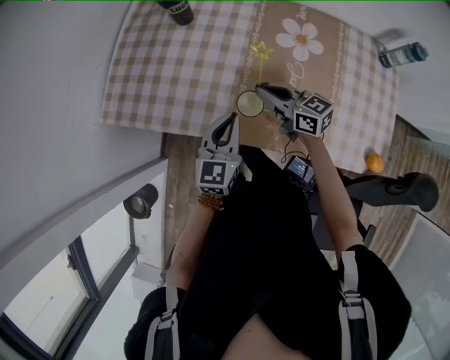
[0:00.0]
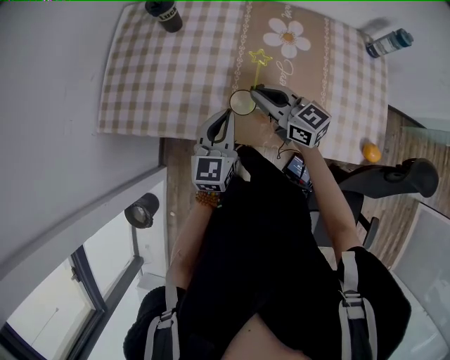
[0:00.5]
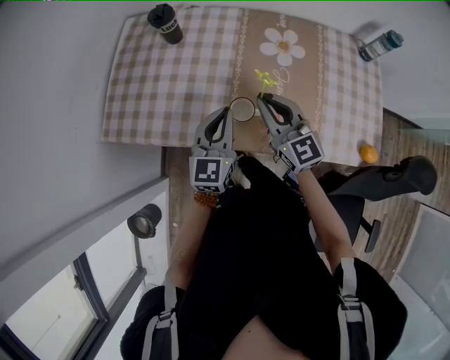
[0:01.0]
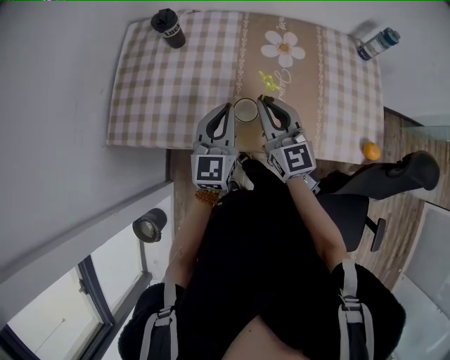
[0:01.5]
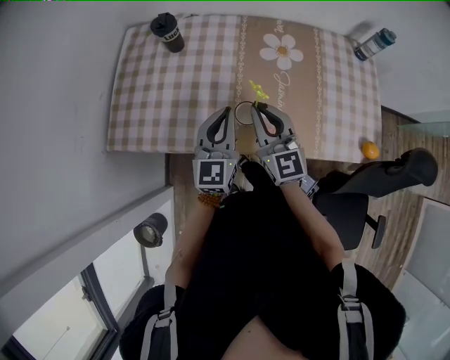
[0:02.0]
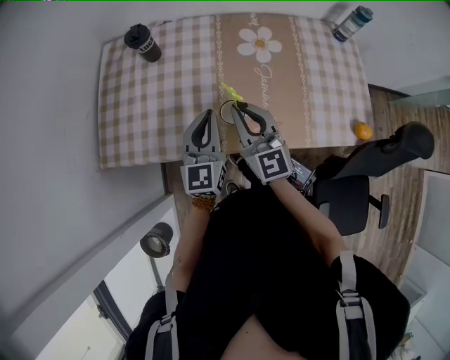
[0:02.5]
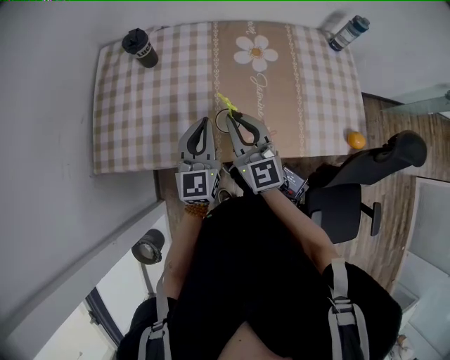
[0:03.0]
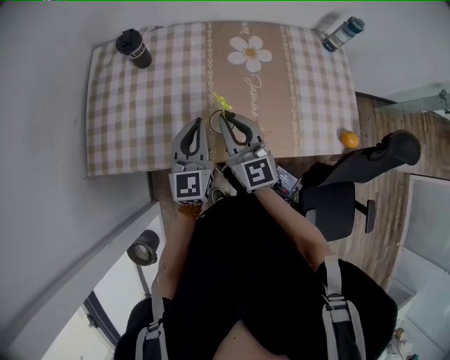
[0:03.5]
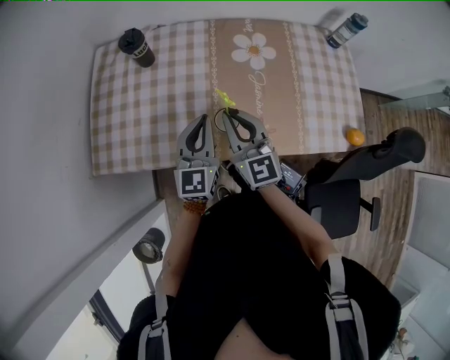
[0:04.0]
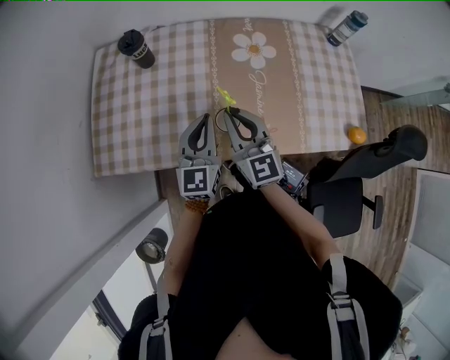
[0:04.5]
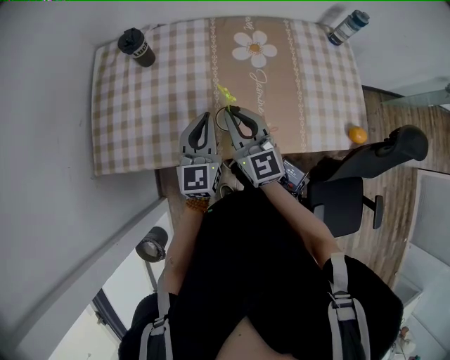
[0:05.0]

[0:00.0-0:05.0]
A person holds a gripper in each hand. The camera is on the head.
0:00.0 to 0:02.5: The right gripper moves upward and backward, approximately 15 cm, and swivels about 50 degrees. Meanwhile the left gripper goes roughly 10 cm upward.
0:02.5 to 0:05.0: The grippers stay close to where they were, moving slightly.

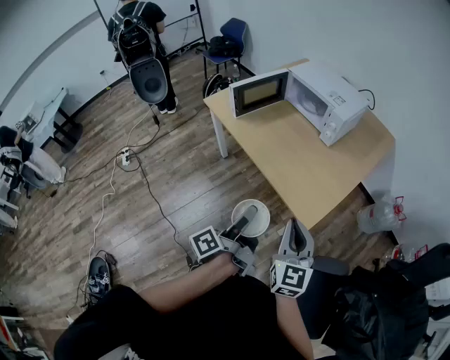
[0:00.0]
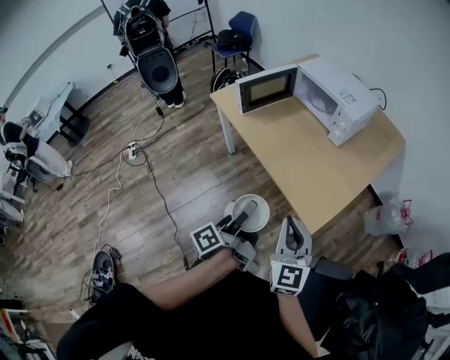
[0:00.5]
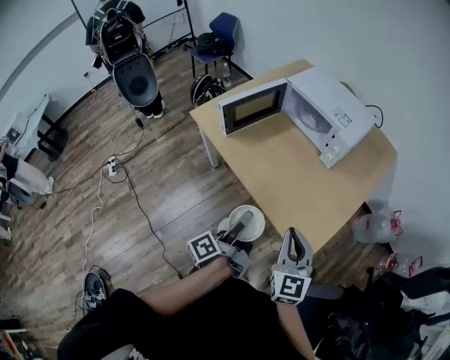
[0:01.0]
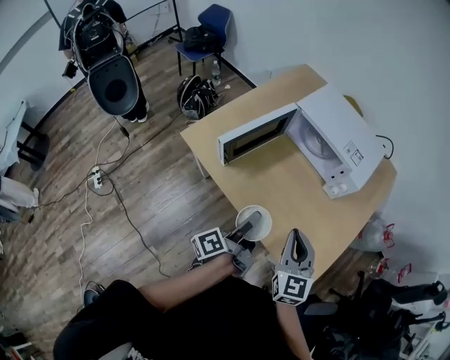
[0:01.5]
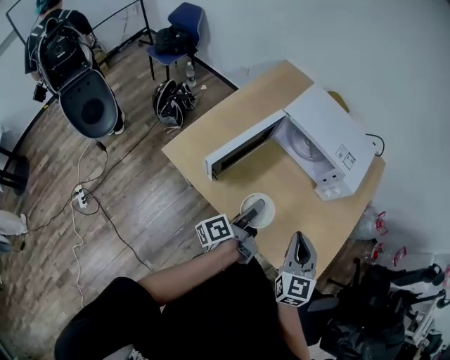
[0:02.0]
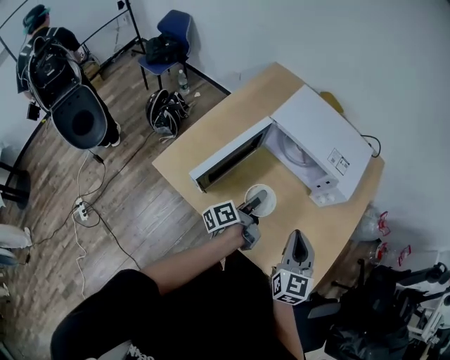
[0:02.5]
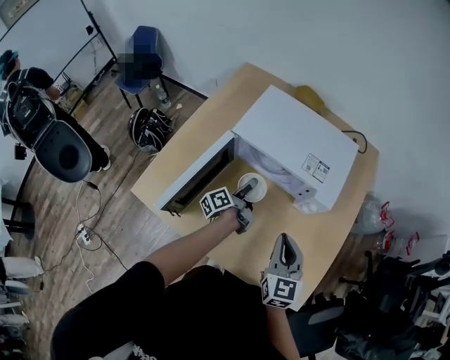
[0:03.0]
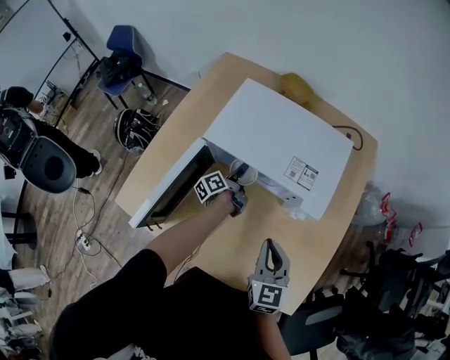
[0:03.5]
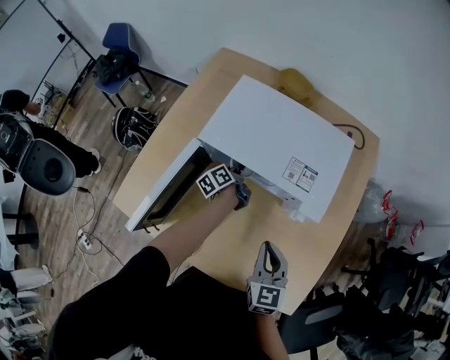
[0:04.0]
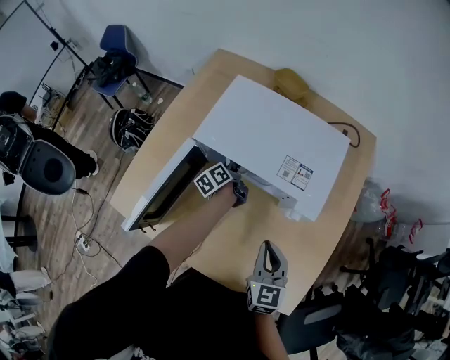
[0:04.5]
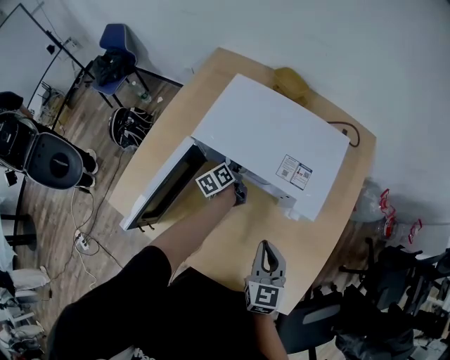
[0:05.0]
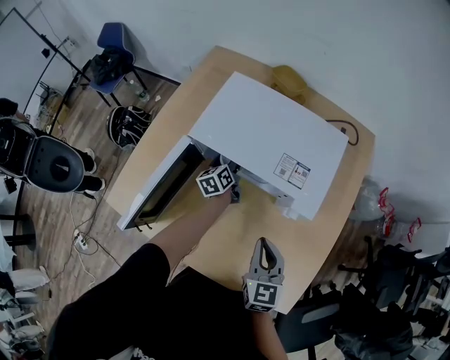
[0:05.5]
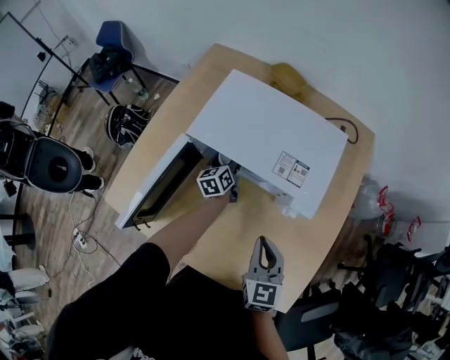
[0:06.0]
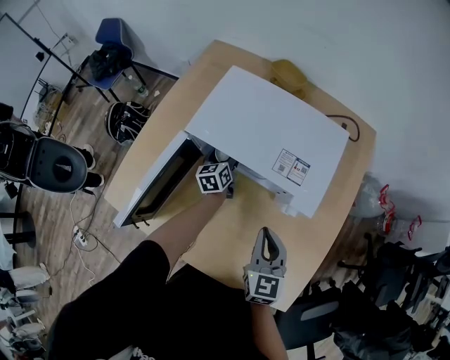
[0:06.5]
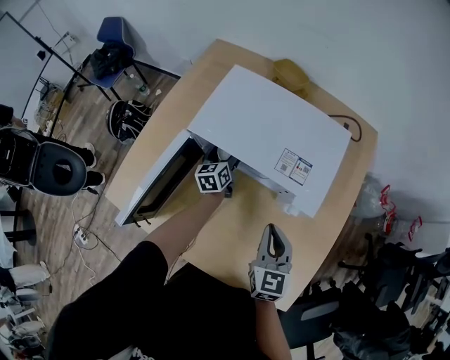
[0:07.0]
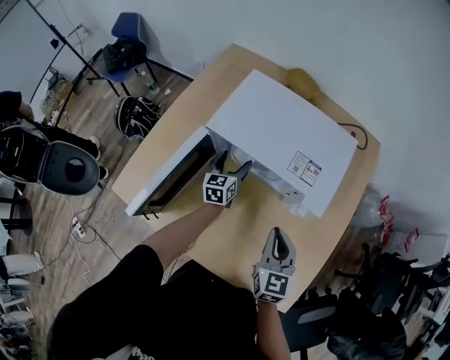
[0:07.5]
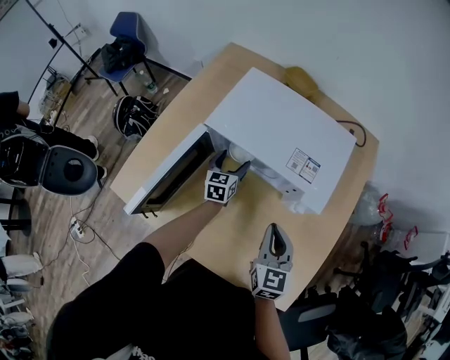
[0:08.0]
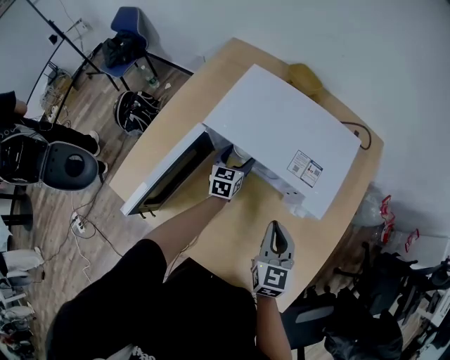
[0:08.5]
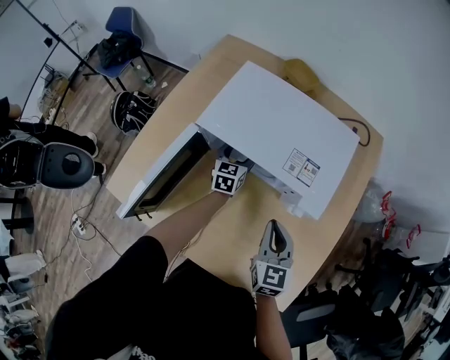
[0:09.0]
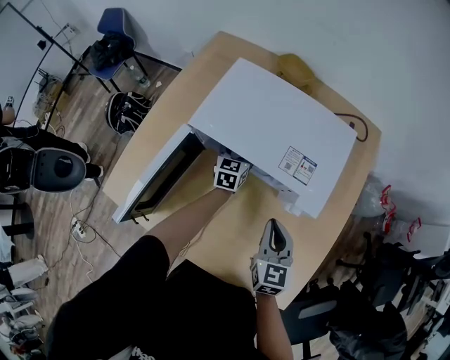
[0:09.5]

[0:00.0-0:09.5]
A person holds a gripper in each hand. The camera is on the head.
0:00.0 to 0:02.0: The grippers both shift forward by approximately 40 cm. The left gripper swivels roughly 20 degrees.
0:02.0 to 0:04.0: The left gripper moves forward and downward, about 40 cm, and swivels approximately 30 degrees. The right gripper moves forward, downward and to the right, roughly 20 cm.
0:04.0 to 0:05.5: The left gripper turns by roughly 30 degrees.
0:05.5 to 0:07.5: The left gripper changes place by roughly 5 cm, and rotates approximately 30 degrees.
0:07.5 to 0:09.5: The left gripper shifts about 10 cm forward and to the right.

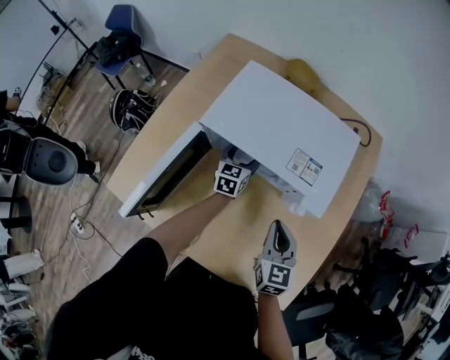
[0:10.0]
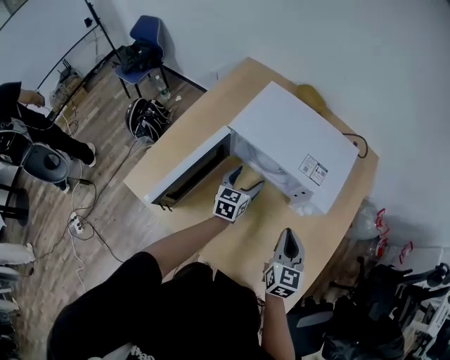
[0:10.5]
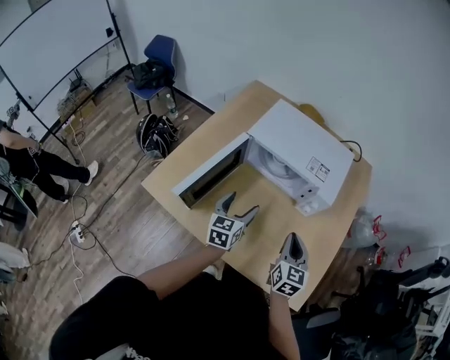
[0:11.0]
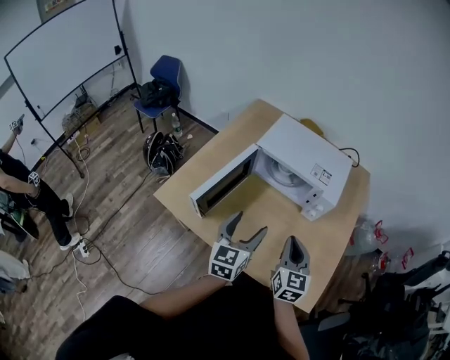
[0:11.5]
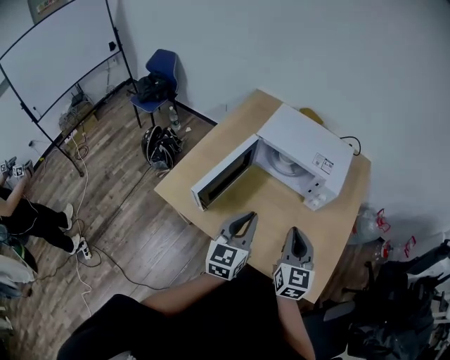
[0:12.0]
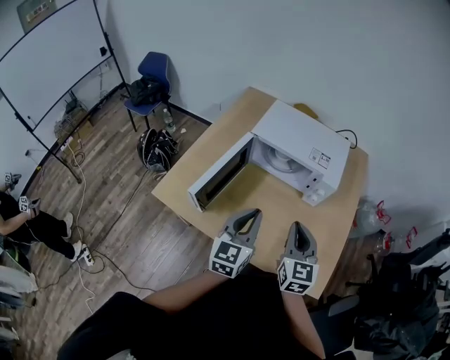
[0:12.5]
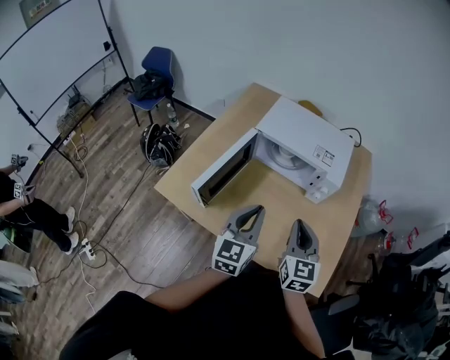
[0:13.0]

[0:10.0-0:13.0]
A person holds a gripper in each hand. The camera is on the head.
0:10.0 to 0:11.5: The left gripper heads backward and upward, covering some 40 cm. Meanwhile the right gripper is displaced backward and upward by some 20 cm.
0:11.5 to 0:13.0: The left gripper closes.

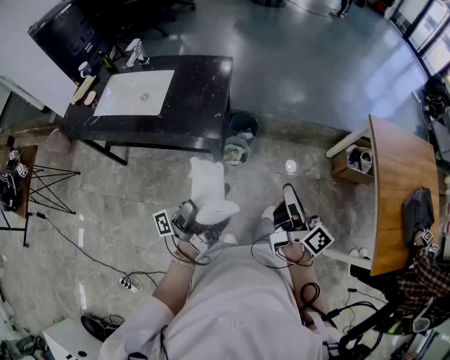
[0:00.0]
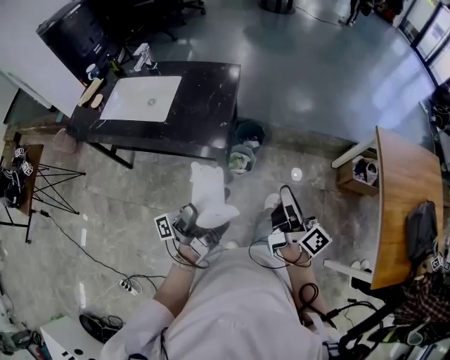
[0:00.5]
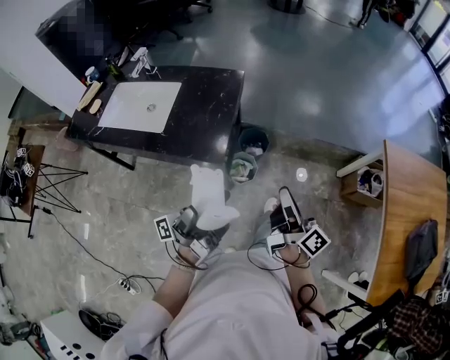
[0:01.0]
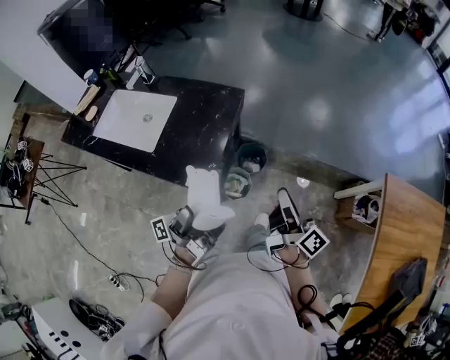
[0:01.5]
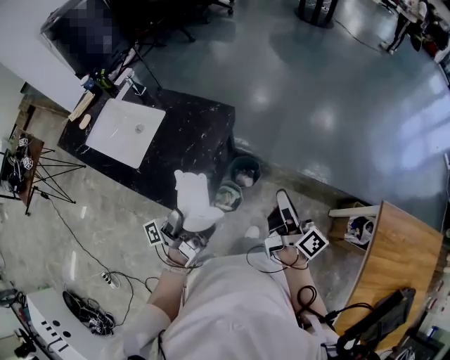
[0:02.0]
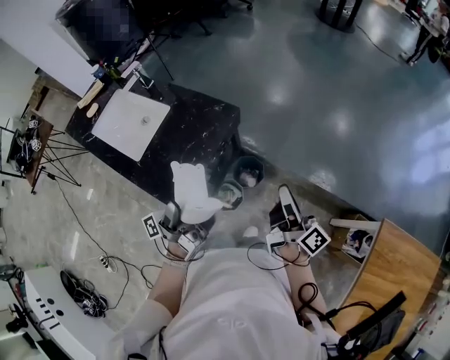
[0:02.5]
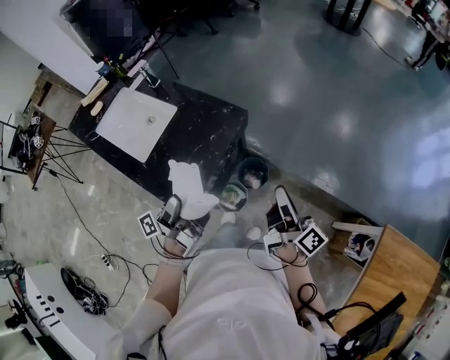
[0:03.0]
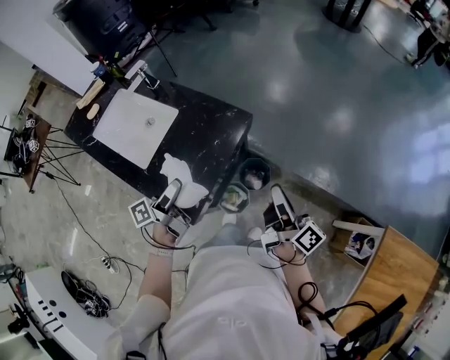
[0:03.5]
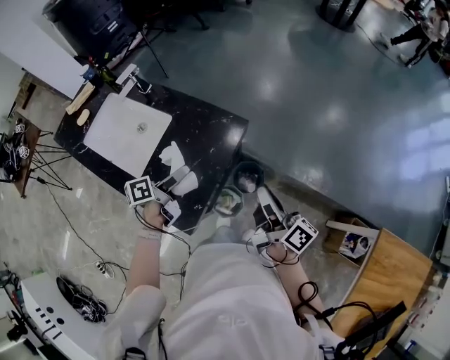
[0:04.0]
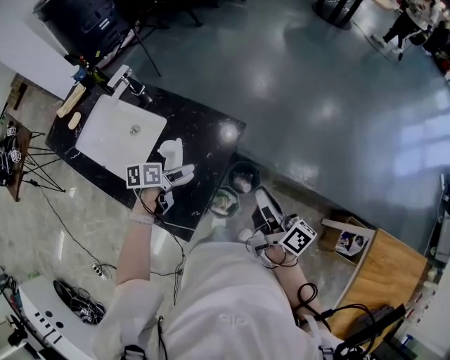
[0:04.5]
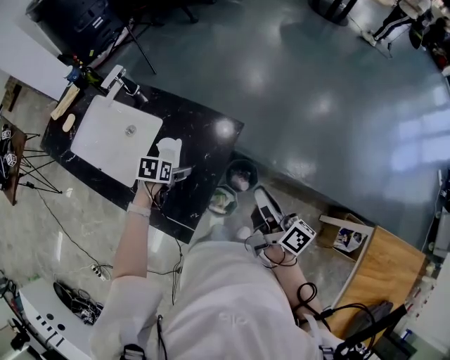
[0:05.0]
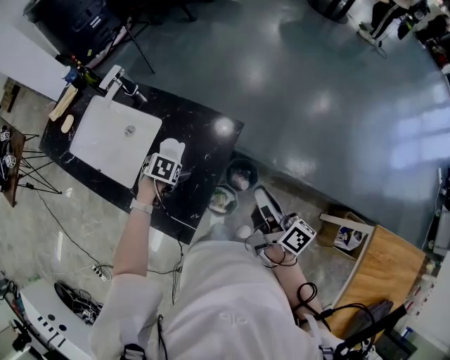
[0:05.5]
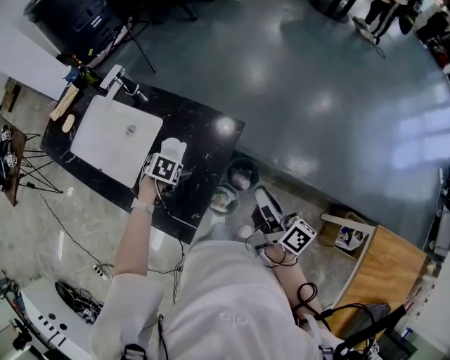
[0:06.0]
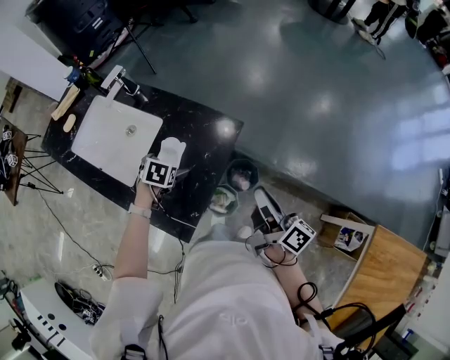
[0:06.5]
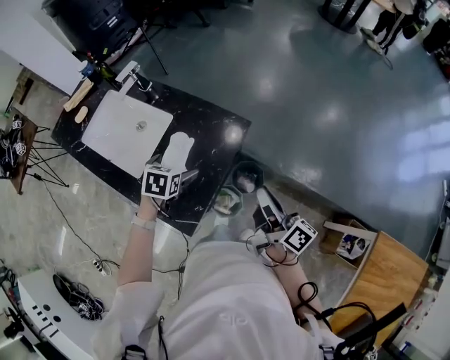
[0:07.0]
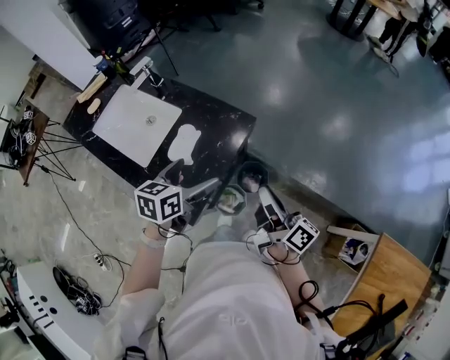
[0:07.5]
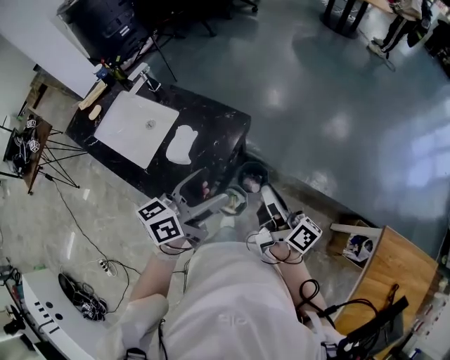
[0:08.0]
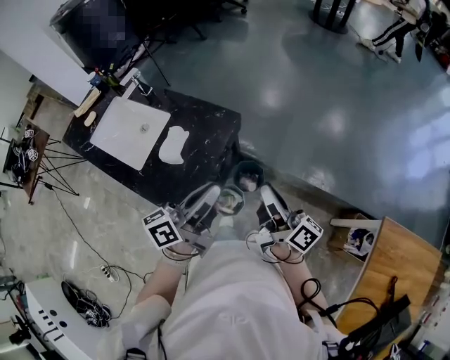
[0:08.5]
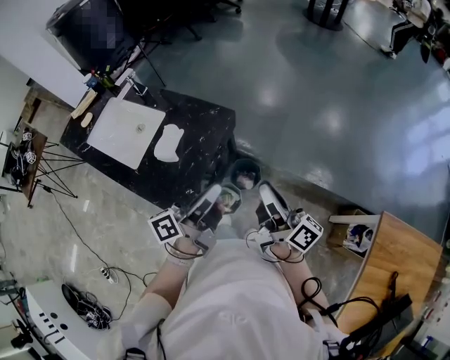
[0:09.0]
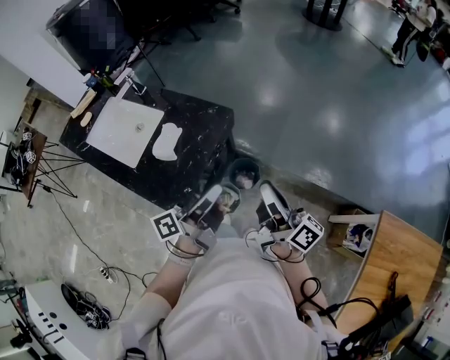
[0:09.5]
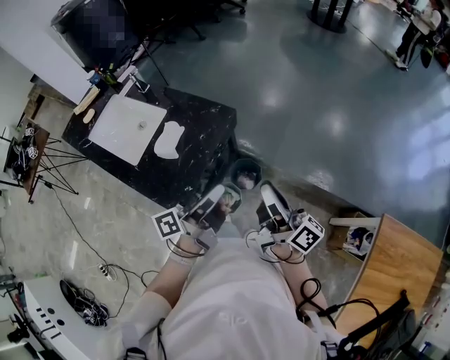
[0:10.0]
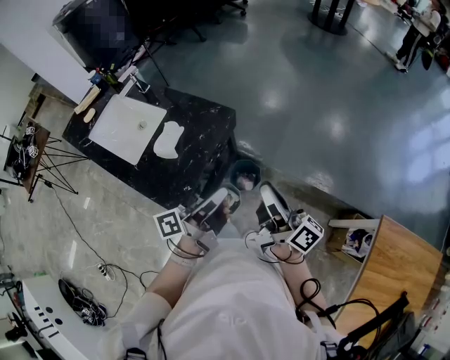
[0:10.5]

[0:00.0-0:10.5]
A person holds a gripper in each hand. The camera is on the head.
0:00.0 to 0:02.0: The right gripper moves some 40 cm.
0:02.0 to 0:04.0: The right gripper changes place by approximately 15 cm.
0:06.5 to 0:08.5: The right gripper changes place by roughly 15 cm.
